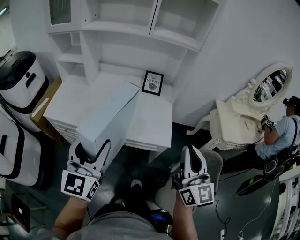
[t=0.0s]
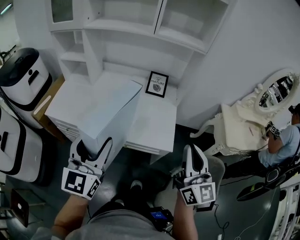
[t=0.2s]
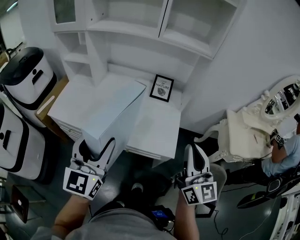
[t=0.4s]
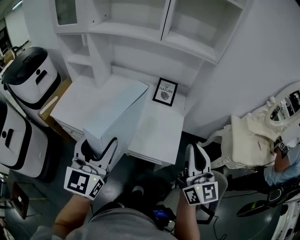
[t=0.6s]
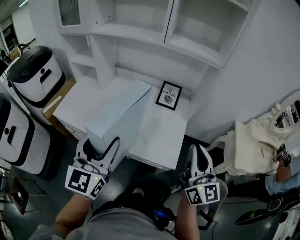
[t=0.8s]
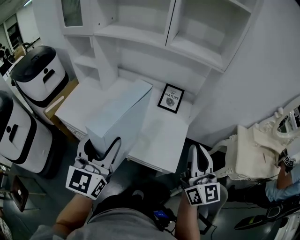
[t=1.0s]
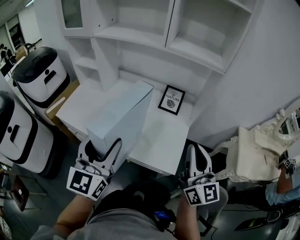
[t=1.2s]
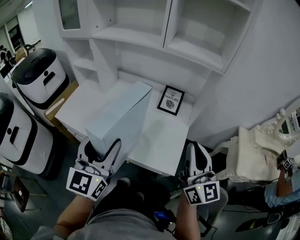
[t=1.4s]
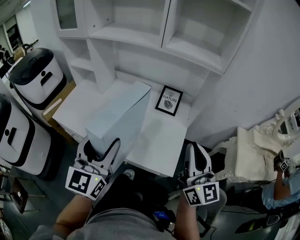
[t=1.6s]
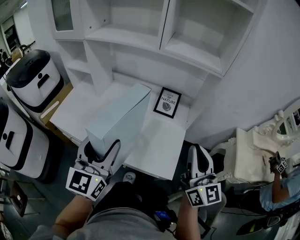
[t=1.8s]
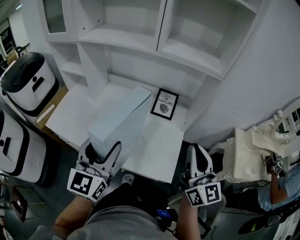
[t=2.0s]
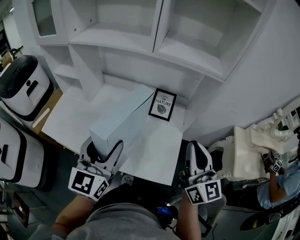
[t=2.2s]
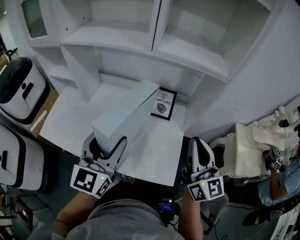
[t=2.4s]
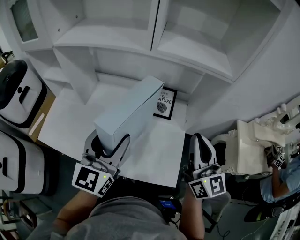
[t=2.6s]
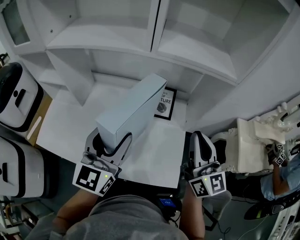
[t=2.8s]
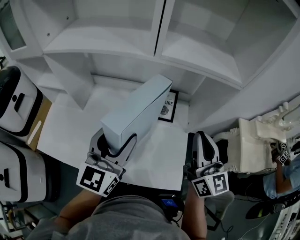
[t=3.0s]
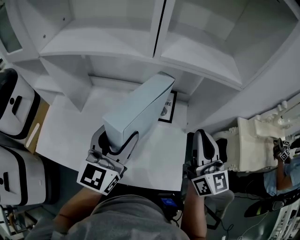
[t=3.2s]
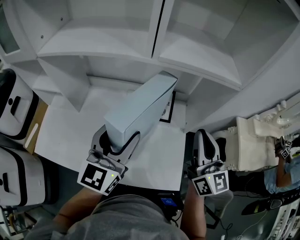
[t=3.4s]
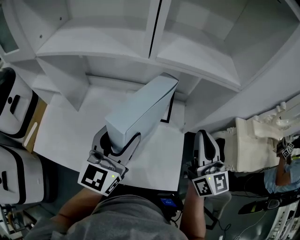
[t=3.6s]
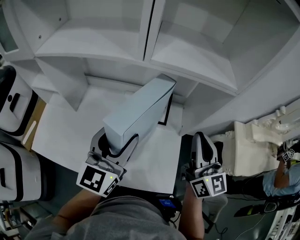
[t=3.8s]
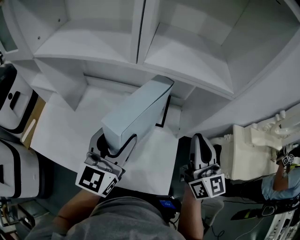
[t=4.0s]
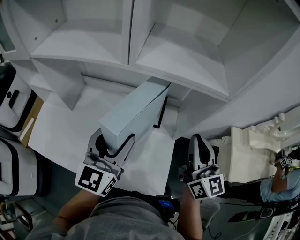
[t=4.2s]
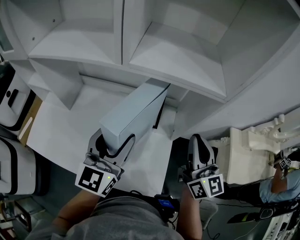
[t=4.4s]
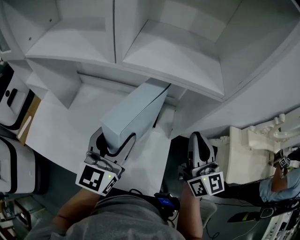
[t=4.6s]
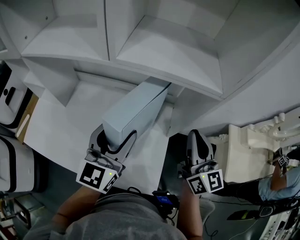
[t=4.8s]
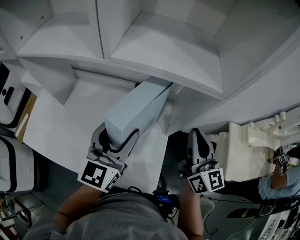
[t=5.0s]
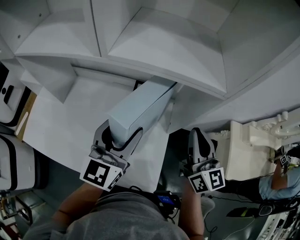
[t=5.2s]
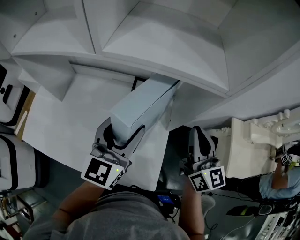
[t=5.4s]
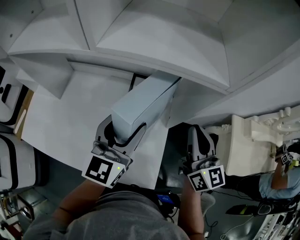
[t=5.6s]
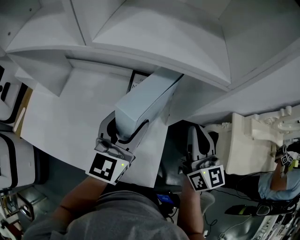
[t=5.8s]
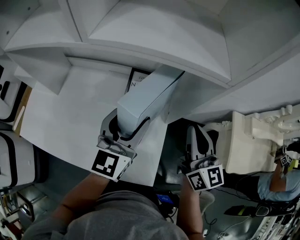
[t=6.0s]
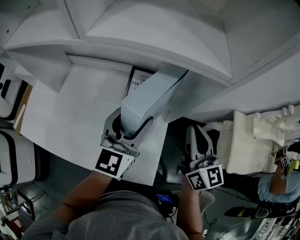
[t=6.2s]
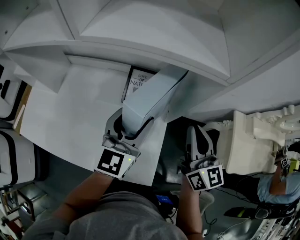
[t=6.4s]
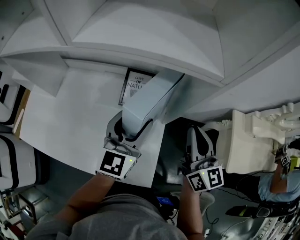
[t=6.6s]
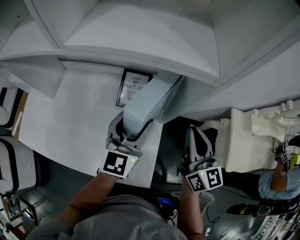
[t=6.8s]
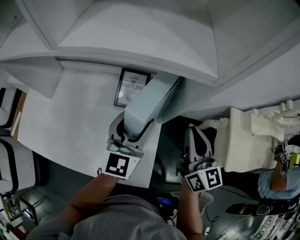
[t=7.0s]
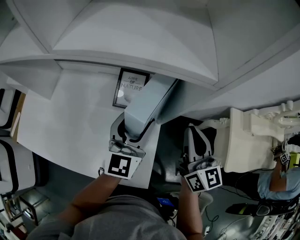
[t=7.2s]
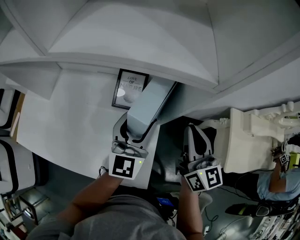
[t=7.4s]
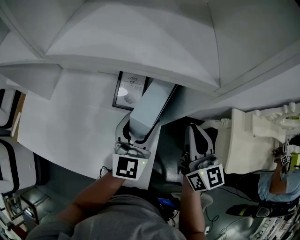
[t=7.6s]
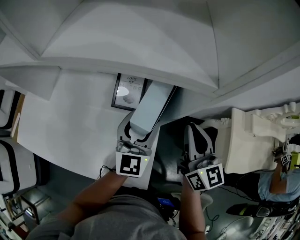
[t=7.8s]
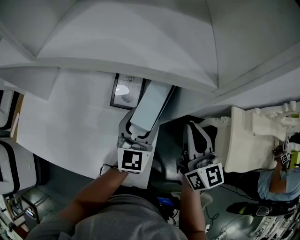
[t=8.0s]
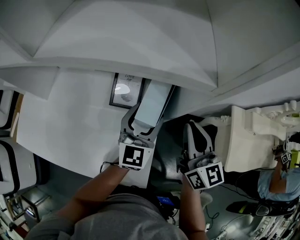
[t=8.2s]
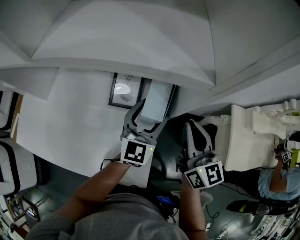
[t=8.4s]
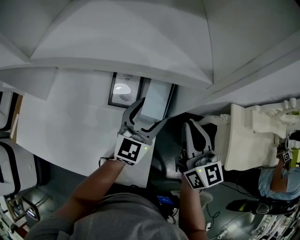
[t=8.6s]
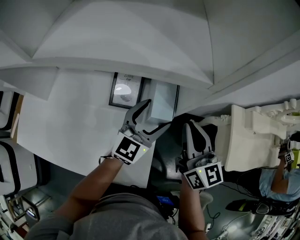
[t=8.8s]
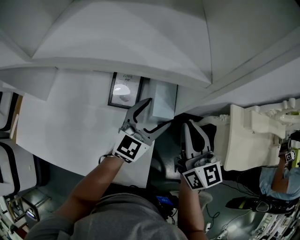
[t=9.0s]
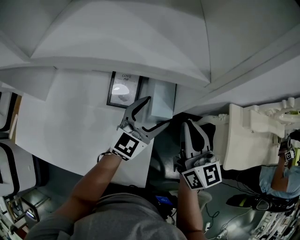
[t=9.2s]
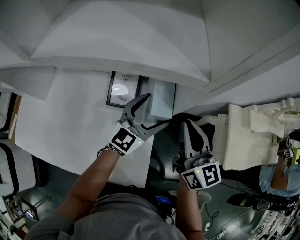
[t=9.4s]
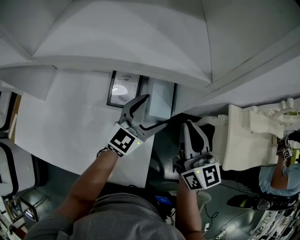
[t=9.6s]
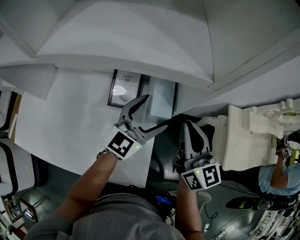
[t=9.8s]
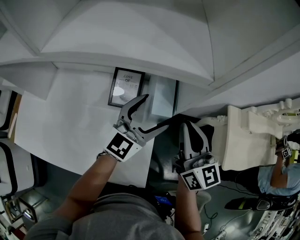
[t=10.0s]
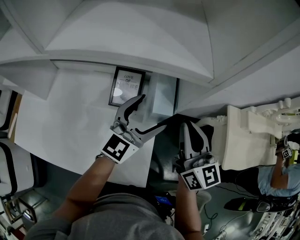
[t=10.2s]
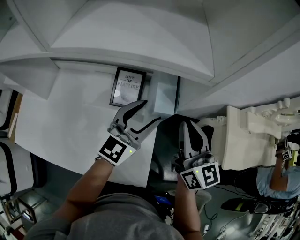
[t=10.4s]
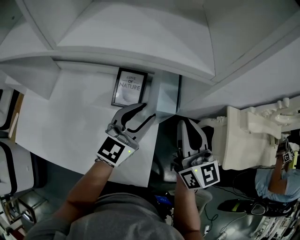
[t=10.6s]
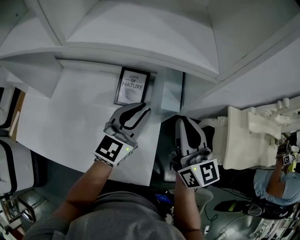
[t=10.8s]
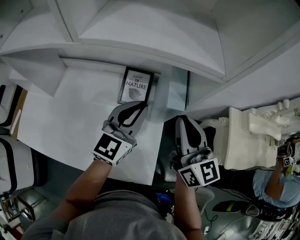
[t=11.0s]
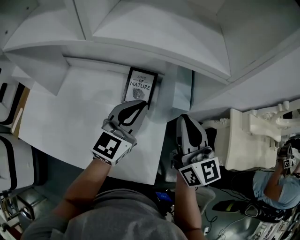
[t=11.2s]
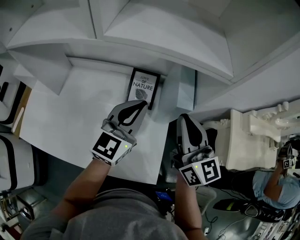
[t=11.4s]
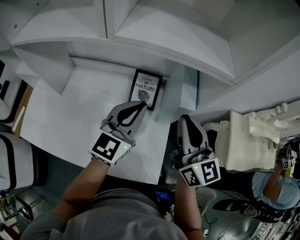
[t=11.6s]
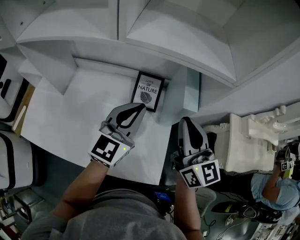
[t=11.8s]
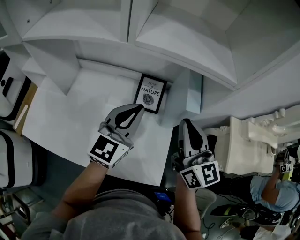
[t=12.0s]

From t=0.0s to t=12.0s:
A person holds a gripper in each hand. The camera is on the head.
From t=0.0s to t=1.6s: The right gripper travels forward by about 20 cm. The left gripper goes roughly 15 cm forward and to the right.
From t=1.6s to t=3.0s: The grippers both shift forward by roughly 20 cm.
From t=3.0s to t=4.4s: The left gripper moves to the right, some 5 cm. Meanwhile the right gripper shifts some 10 cm to the right and forward.
From t=4.4s to t=6.0s: The left gripper moves to the right and downward, about 10 cm; the right gripper is displaced downward by roughly 5 cm.
From t=6.0s to t=7.6s: The right gripper shifts by about 5 cm, while the left gripper moves to the right, some 5 cm.
From t=7.6s to t=9.0s: The left gripper is displaced to the right by roughly 5 cm, and swivels some 30 degrees.
From t=9.0s to t=10.4s: The left gripper moves upward, about 5 cm.
From t=10.4s to t=12.0s: The grippers both shift to the left and backward by roughly 15 cm. The left gripper closes up.

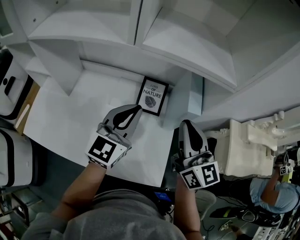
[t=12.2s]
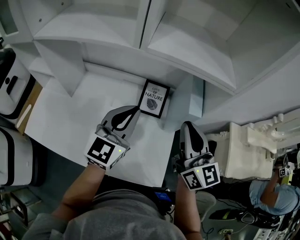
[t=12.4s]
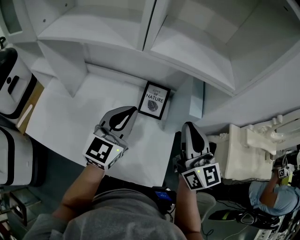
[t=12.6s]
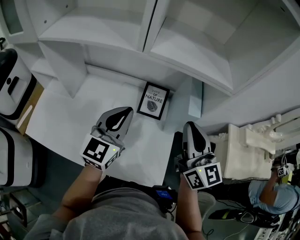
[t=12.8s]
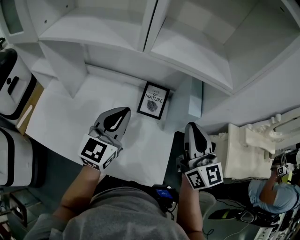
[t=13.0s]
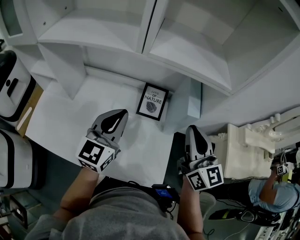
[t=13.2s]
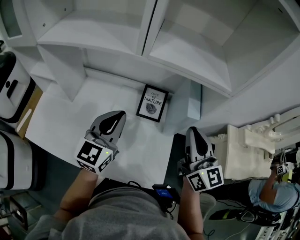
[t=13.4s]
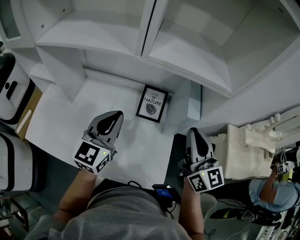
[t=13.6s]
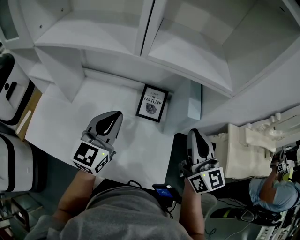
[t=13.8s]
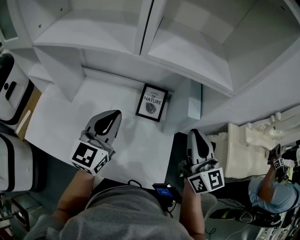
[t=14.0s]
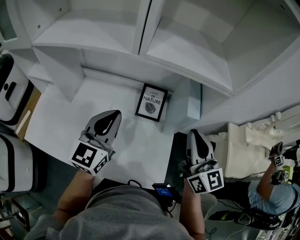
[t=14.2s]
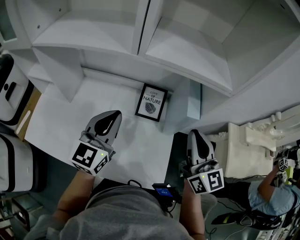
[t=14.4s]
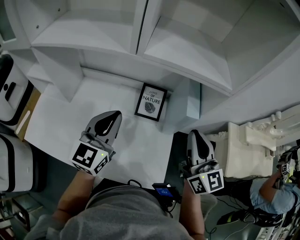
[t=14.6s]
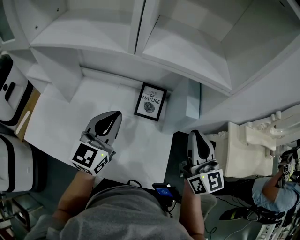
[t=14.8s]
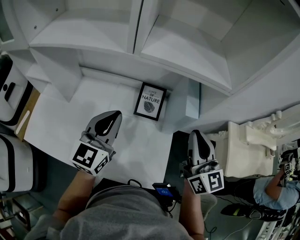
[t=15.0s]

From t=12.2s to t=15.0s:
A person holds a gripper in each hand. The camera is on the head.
From t=12.2s to t=13.6s: The left gripper goes roughly 5 cm to the left.
From t=13.6s to t=15.0s: The grippers make only small movements.

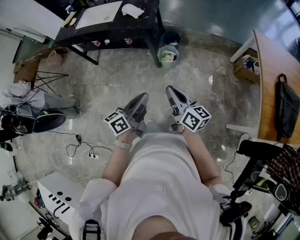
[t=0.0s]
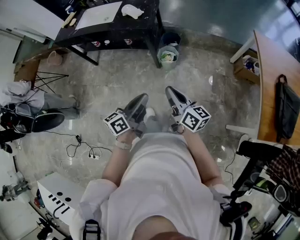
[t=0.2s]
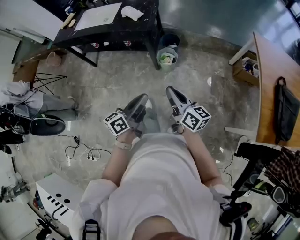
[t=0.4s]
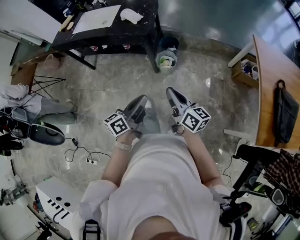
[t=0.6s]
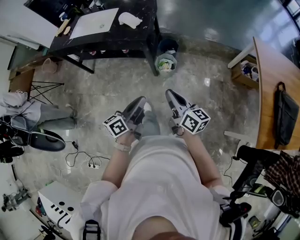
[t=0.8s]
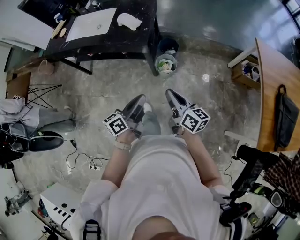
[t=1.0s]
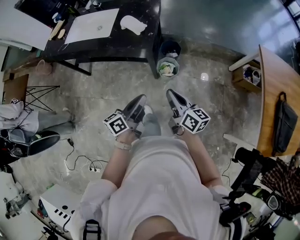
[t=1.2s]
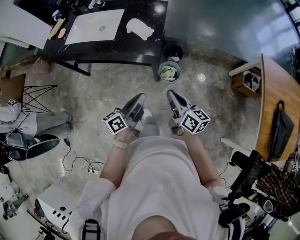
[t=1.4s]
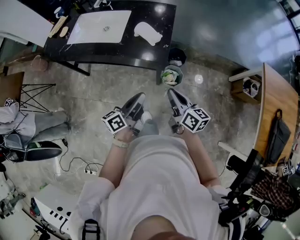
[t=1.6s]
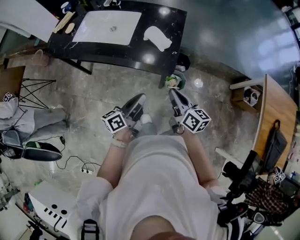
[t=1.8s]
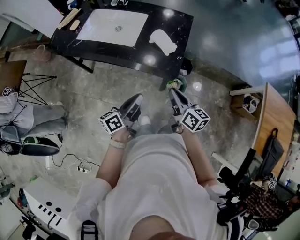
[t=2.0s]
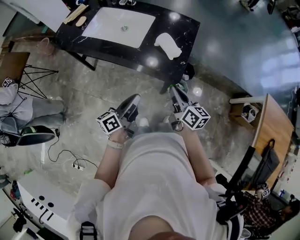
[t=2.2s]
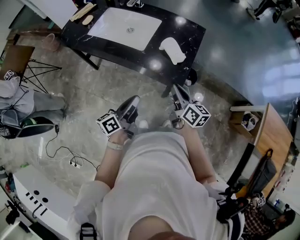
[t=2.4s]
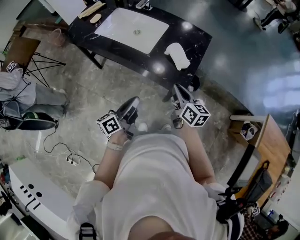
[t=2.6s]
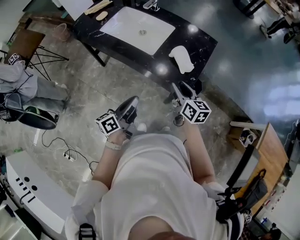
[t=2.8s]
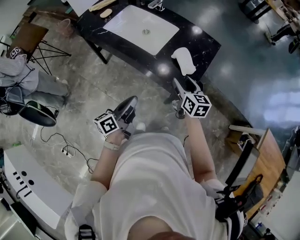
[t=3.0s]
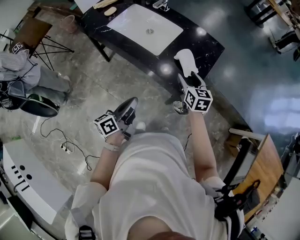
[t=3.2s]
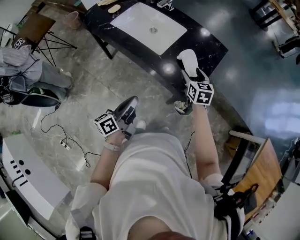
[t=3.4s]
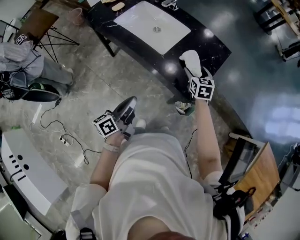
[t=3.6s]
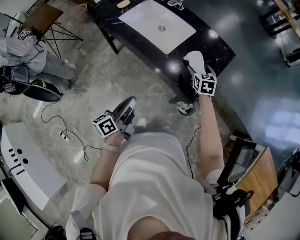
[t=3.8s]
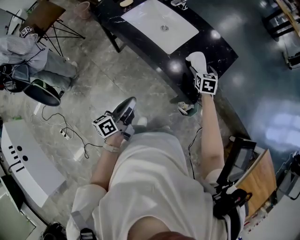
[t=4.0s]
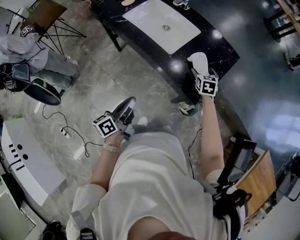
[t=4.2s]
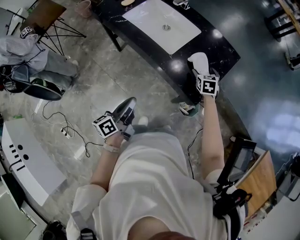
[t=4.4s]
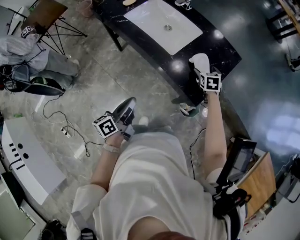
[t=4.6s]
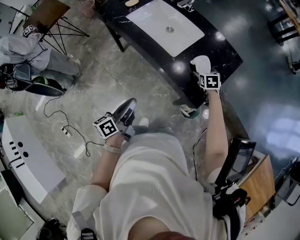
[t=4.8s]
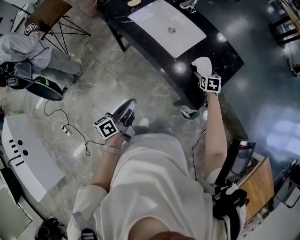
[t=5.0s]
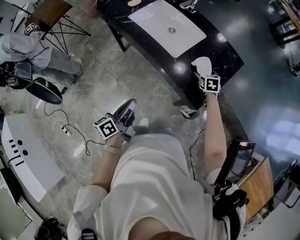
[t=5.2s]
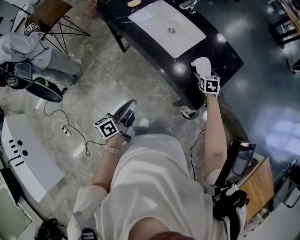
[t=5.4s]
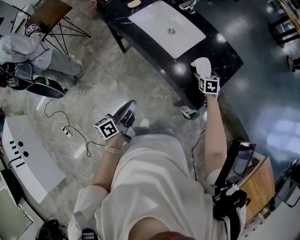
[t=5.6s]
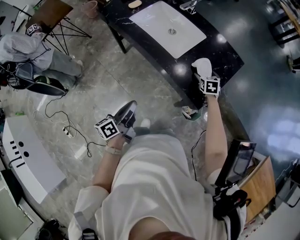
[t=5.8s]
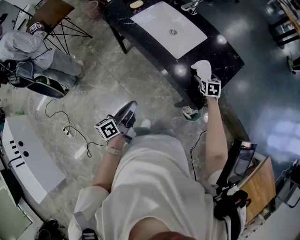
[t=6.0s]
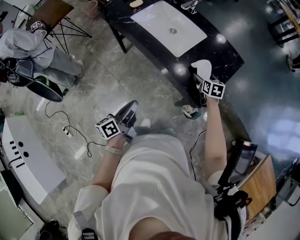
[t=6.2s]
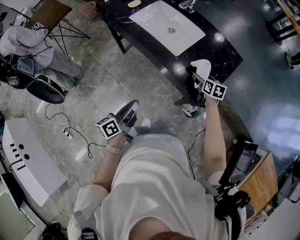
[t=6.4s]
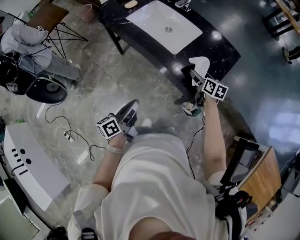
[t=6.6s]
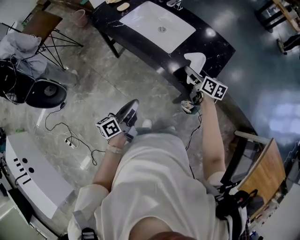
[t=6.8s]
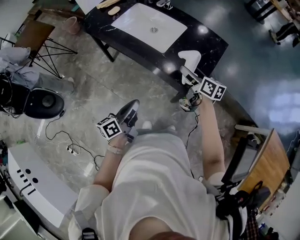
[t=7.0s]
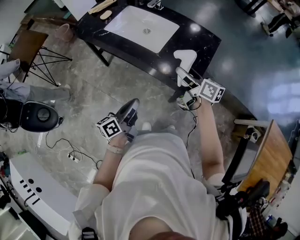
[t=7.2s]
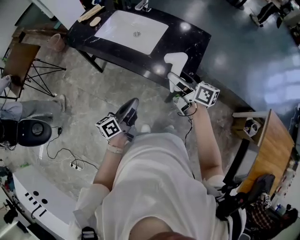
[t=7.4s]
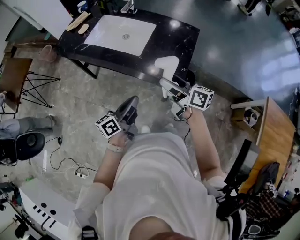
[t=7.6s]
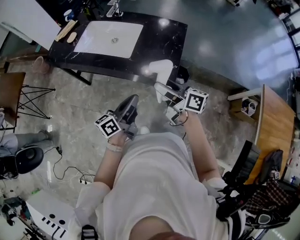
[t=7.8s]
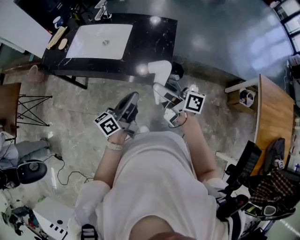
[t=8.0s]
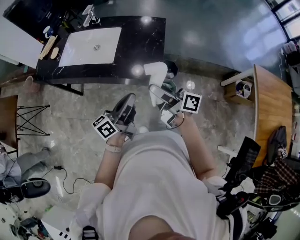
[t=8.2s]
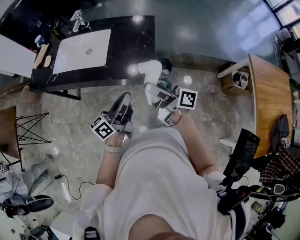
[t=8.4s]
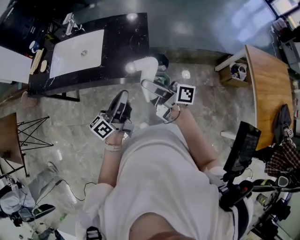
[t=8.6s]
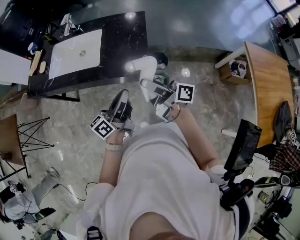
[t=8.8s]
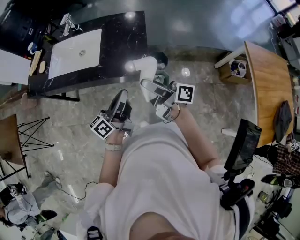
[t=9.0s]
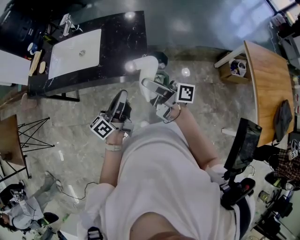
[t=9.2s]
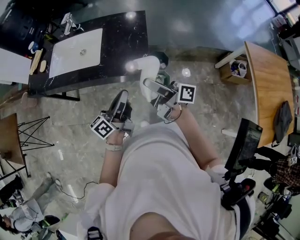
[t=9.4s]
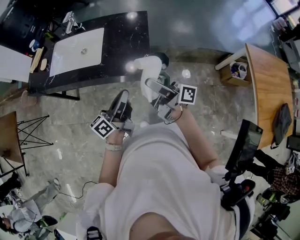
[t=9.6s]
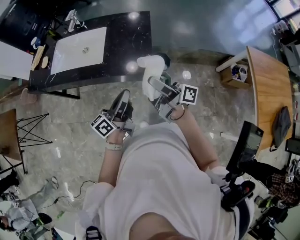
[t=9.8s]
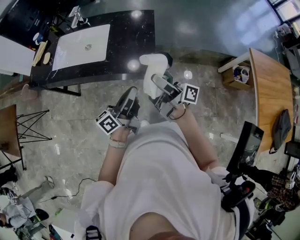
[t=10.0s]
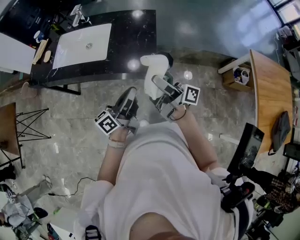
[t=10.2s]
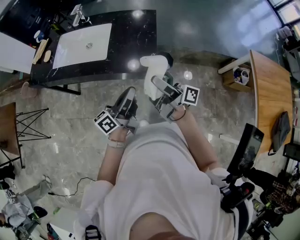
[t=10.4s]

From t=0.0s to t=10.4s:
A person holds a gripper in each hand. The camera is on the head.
From t=0.0s to t=1.4s: The grippers both shift forward and to the left by about 30 cm.
From t=1.4s to t=3.0s: The left gripper is displaced to the left and forward by some 20 cm, and turns by about 20 degrees, while the right gripper goes approximately 30 cm forward and to the left, turns by about 30 degrees, and opens.
From t=3.0s to t=4.4s: The right gripper heads forward and downward, covering roughly 15 cm, swivels roughly 30 degrees, and opens up.
From t=4.4s to t=6.0s: The grippers make only small movements.
From t=6.0s to t=7.4s: The right gripper goes approximately 30 cm upward, backward and to the left, and points its fingers some 50 degrees further upward. The left gripper is displaced to the right by about 5 cm, and turns by approximately 20 degrees.
From t=7.4s to t=9.0s: The left gripper is displaced to the right by roughly 10 cm, and swivels roughly 20 degrees, while the right gripper moves backward and to the right, about 10 cm, and swivels approximately 30 degrees.
From t=9.0s to t=10.4s: The grippers move only a little.
